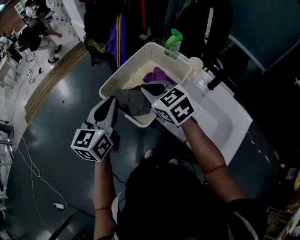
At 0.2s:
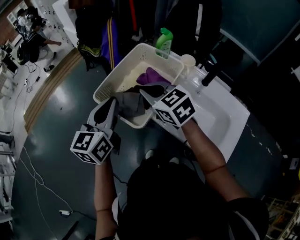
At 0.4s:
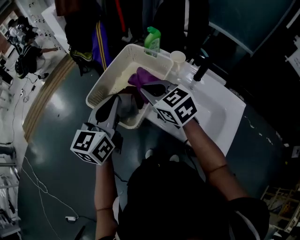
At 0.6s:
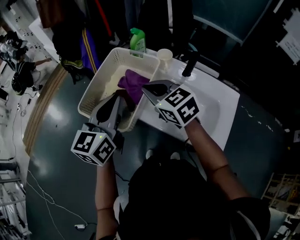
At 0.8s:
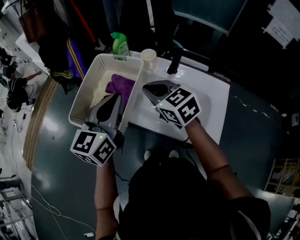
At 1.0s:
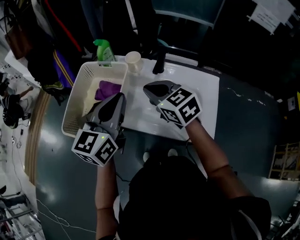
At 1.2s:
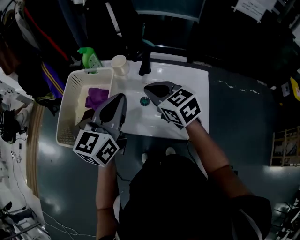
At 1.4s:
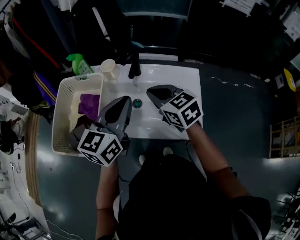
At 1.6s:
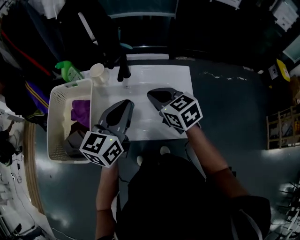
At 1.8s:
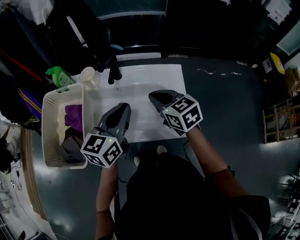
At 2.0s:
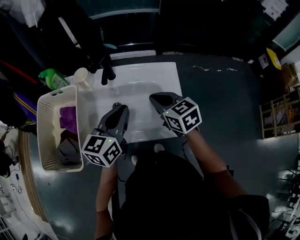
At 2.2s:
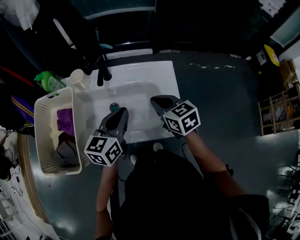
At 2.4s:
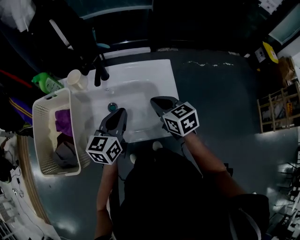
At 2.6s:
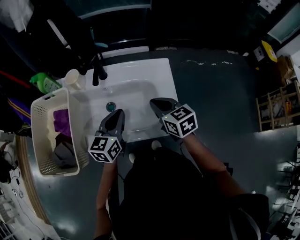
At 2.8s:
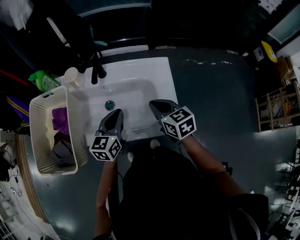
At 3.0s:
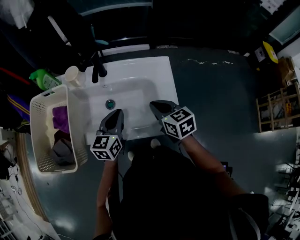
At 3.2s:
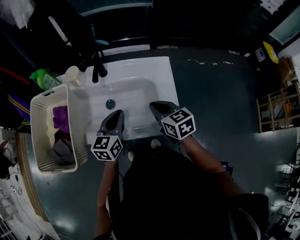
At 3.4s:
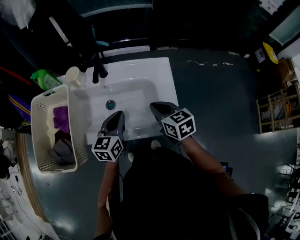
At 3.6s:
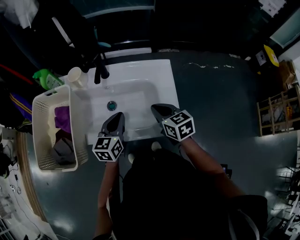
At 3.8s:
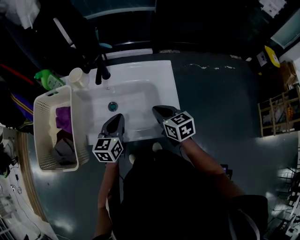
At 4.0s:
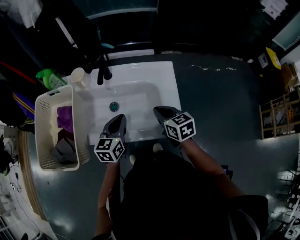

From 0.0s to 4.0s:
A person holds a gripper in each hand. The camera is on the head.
From 0.0s to 1.4s: The left gripper changes place by some 35 cm, and turns by some 50 degrees; the right gripper changes place by roughly 35 cm, and turns by about 40 degrees.
From 1.4s to 2.6s: The left gripper goes approximately 15 cm downward and to the right. Meanwhile the right gripper is displaced to the right and downward by approximately 15 cm, and rotates some 20 degrees.
From 2.6s to 4.0s: The grippers move only a little.

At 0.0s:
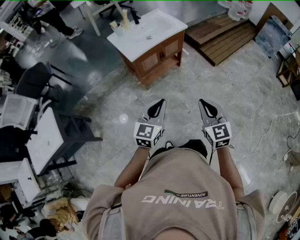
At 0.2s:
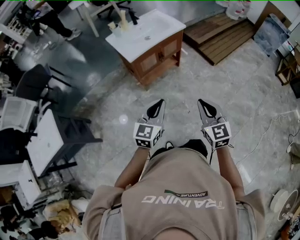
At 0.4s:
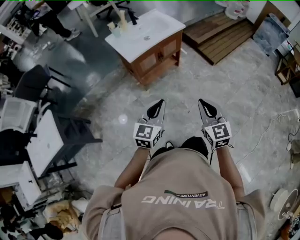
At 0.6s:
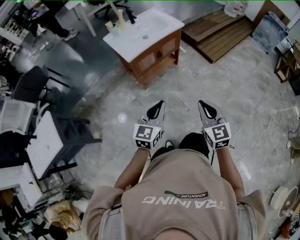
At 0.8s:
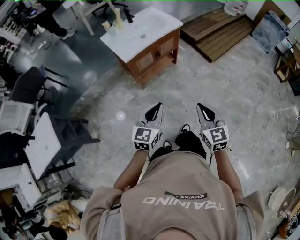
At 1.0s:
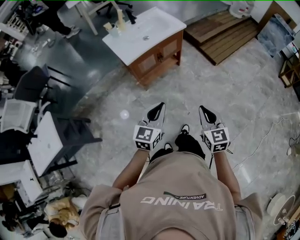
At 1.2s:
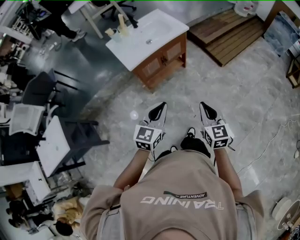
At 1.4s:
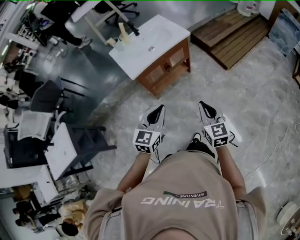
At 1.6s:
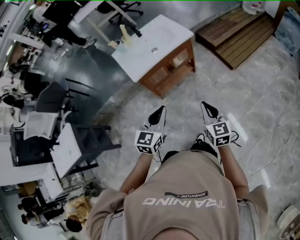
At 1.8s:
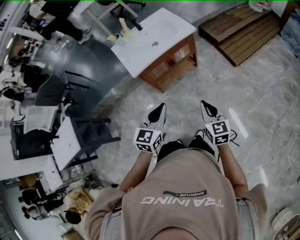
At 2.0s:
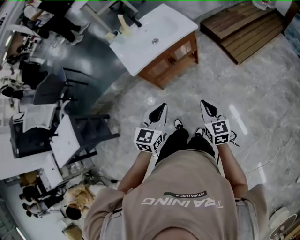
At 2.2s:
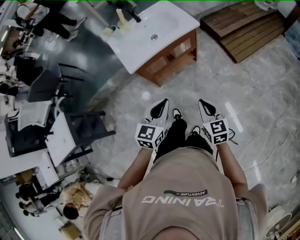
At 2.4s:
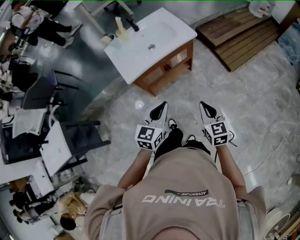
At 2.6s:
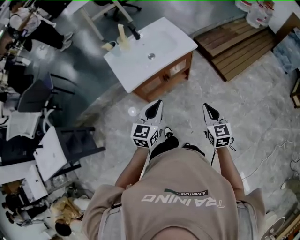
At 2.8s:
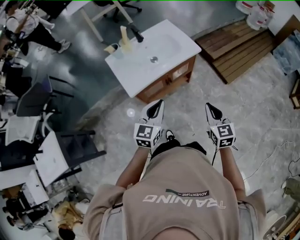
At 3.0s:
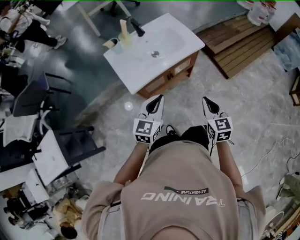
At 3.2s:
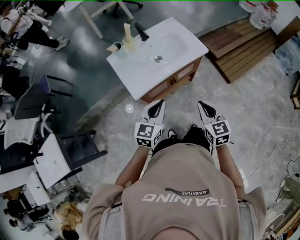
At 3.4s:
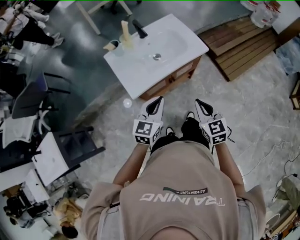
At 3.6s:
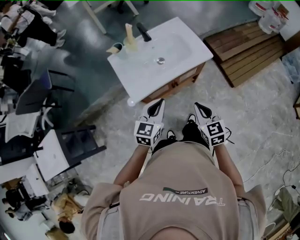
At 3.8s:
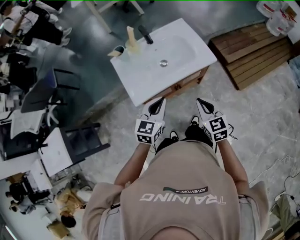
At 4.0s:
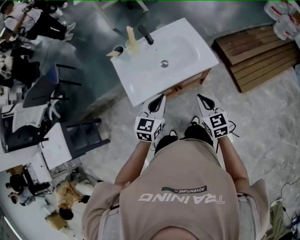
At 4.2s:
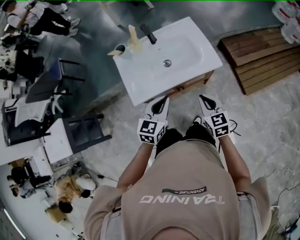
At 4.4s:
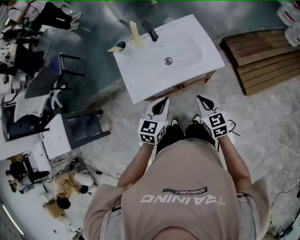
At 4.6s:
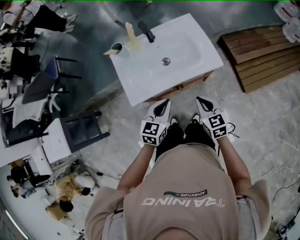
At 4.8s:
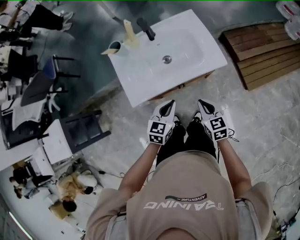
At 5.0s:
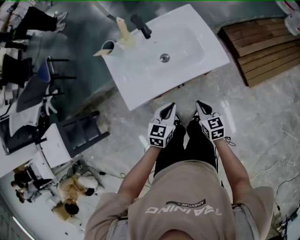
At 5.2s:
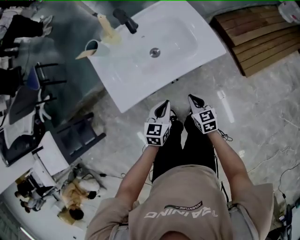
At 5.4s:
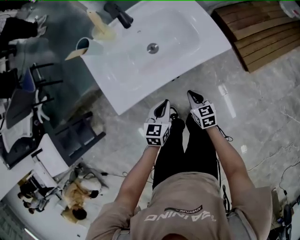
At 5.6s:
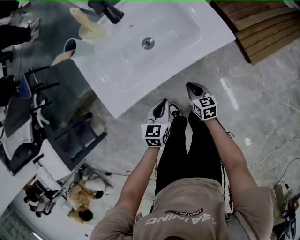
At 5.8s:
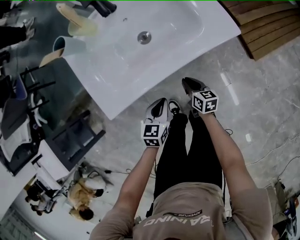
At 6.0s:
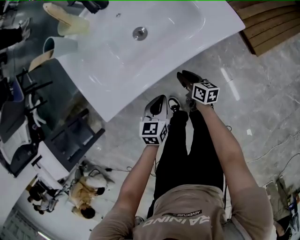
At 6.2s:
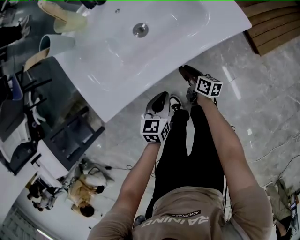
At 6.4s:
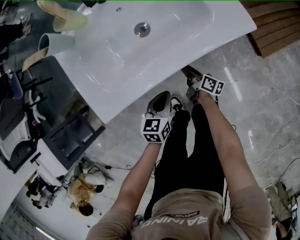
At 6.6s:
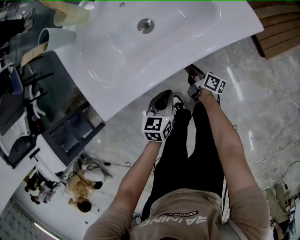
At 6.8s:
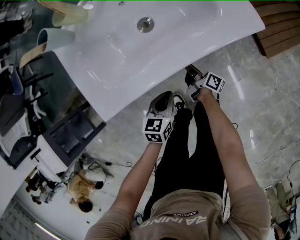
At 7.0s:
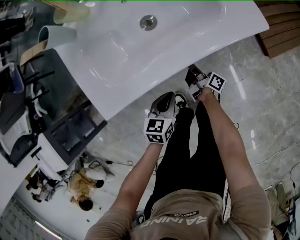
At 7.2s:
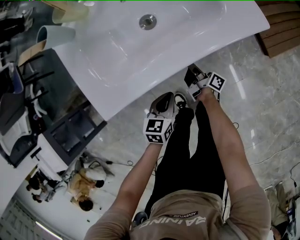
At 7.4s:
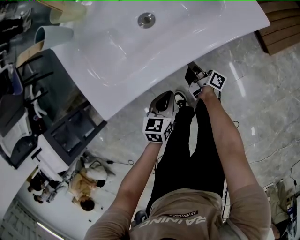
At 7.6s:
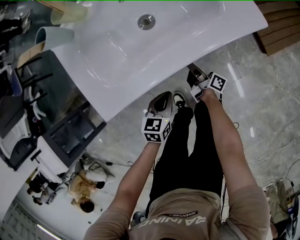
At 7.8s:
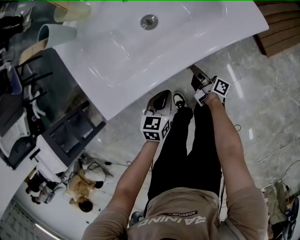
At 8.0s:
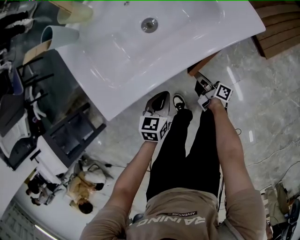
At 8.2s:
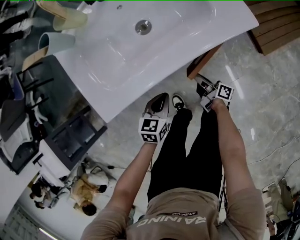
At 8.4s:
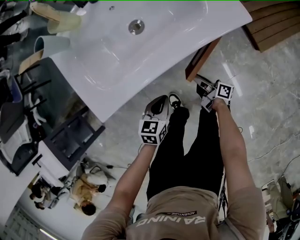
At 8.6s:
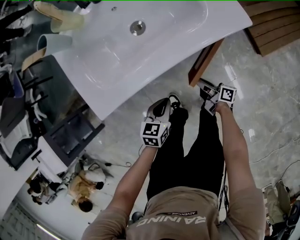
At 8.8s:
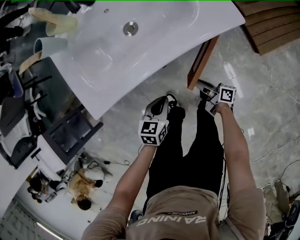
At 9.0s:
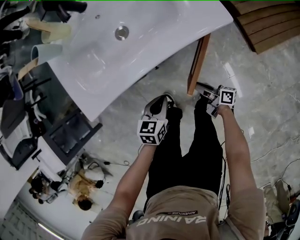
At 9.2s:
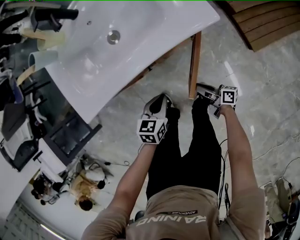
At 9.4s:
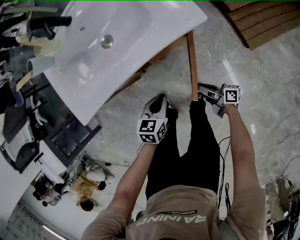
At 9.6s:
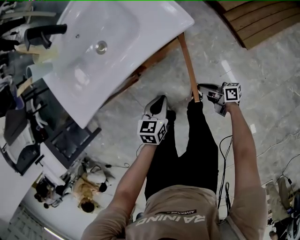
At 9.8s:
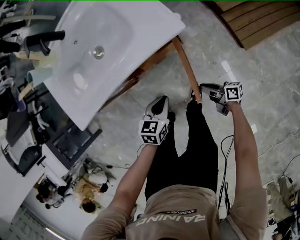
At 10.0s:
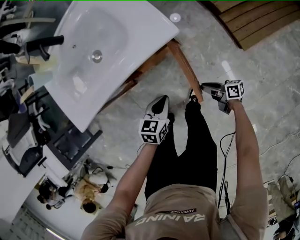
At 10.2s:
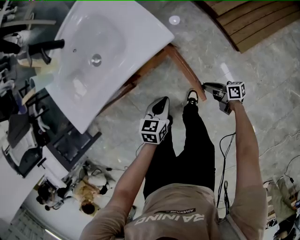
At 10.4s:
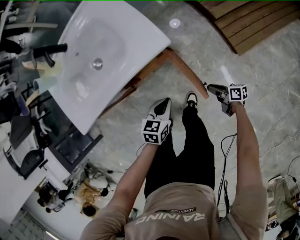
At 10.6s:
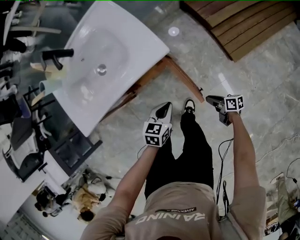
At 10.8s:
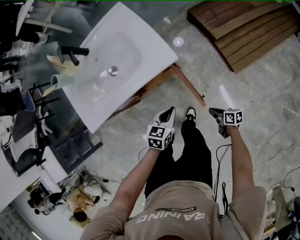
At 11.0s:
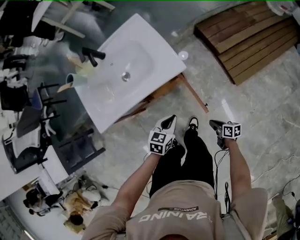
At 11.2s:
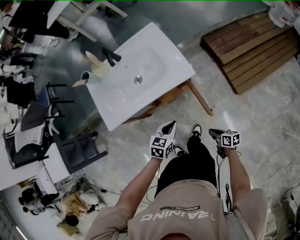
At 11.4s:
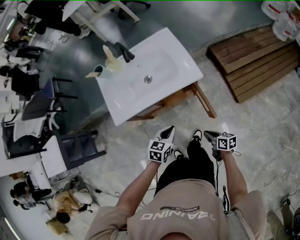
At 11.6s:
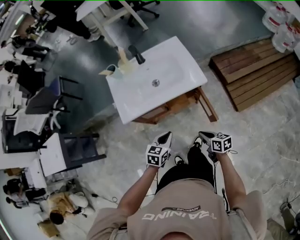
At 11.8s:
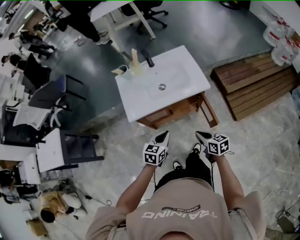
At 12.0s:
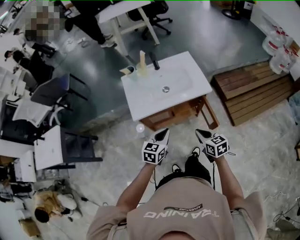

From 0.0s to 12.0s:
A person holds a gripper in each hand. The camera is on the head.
From 0.0s to 1.6s: Both grippers move forward, some 15 cm.
From 1.6s to 3.0s: The two grippers go about 20 cm forward.
From 3.0s to 4.4s: The grippers both shift forward by some 15 cm. The right gripper swivels approximately 30 degrees.
From 4.4s to 6.0s: The grippers both shift downward by some 30 cm. The right gripper twists about 50 degrees clockwise, seen from behind, and opens its fingers.
From 6.0s to 7.6s: The right gripper changes its angle by roughly 40 degrees.
From 7.6s to 9.0s: The right gripper heads backward and to the right, covering approximately 15 cm, and swivels roughly 20 degrees; the left gripper goes approximately 10 cm to the right.
From 9.0s to 10.4s: Both grippers move to the right, roughly 20 cm.
From 10.4s to 12.0s: Both grippers move upward and to the left, roughly 40 cm. The right gripper rotates around the line of its fingers by roughly 50 degrees, counterclockwise from behind, and closes, while the left gripper rotates about 20 degrees.

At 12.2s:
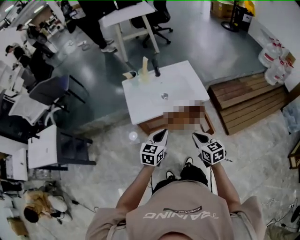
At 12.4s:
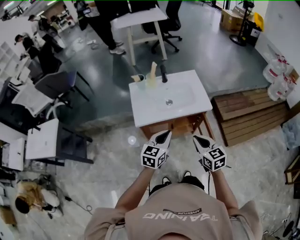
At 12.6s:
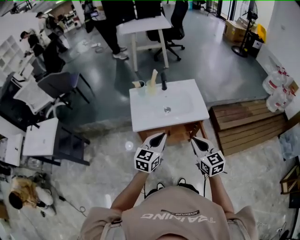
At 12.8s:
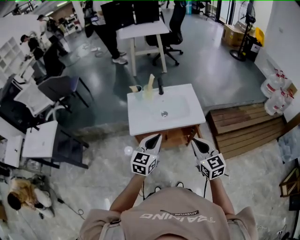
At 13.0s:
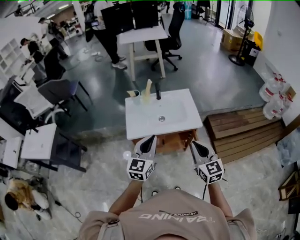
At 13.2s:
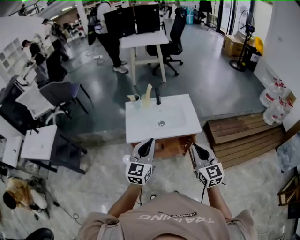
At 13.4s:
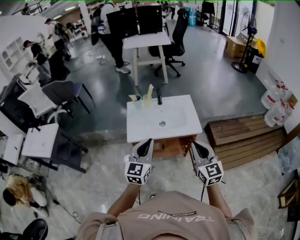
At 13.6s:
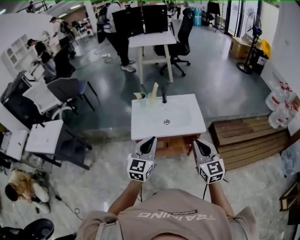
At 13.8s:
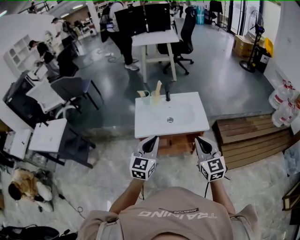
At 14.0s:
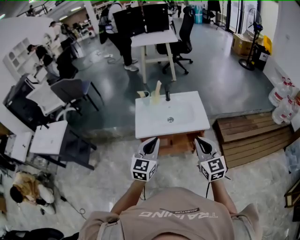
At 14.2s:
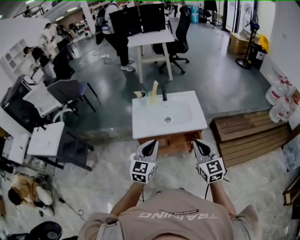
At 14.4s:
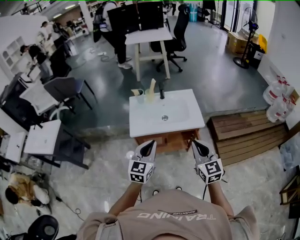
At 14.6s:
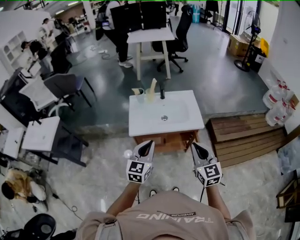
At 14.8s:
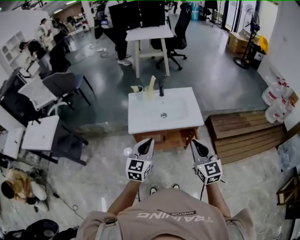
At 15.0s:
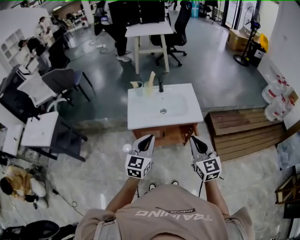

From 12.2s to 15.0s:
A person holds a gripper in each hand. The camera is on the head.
From 12.2s to 13.6s: Both grippers travel together upward, some 15 cm. The right gripper changes its angle by approximately 30 degrees; the left gripper changes its angle by roughly 30 degrees.
From 13.6s to 15.0s: The grippers move only a little.

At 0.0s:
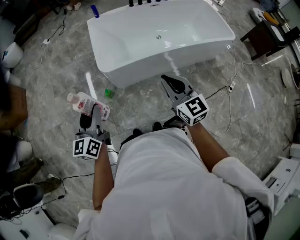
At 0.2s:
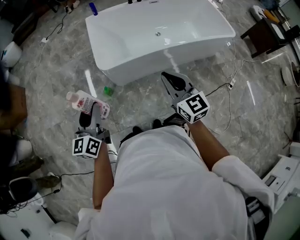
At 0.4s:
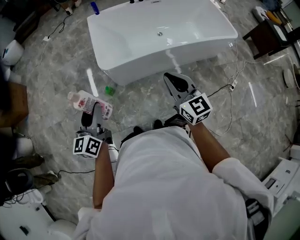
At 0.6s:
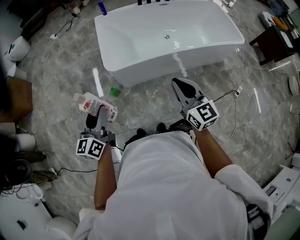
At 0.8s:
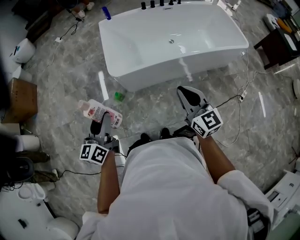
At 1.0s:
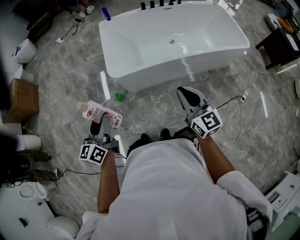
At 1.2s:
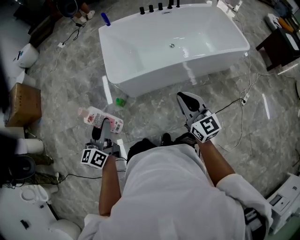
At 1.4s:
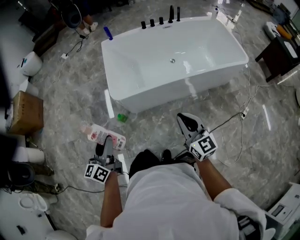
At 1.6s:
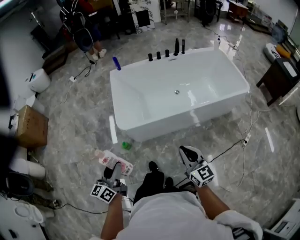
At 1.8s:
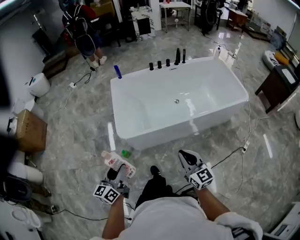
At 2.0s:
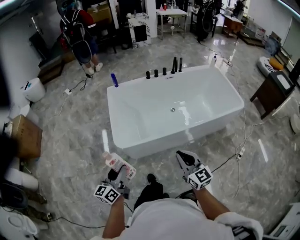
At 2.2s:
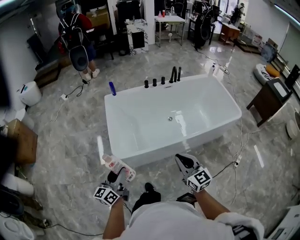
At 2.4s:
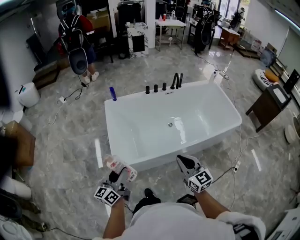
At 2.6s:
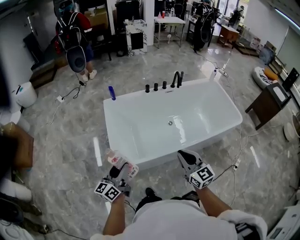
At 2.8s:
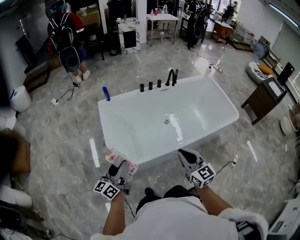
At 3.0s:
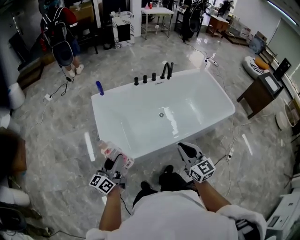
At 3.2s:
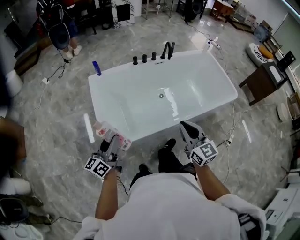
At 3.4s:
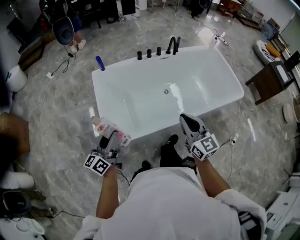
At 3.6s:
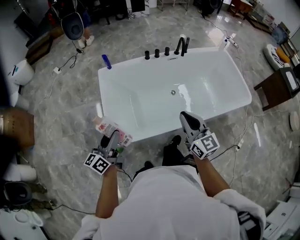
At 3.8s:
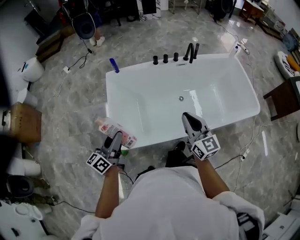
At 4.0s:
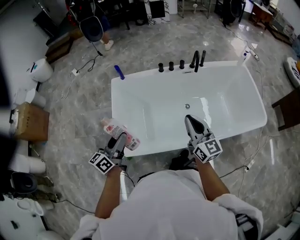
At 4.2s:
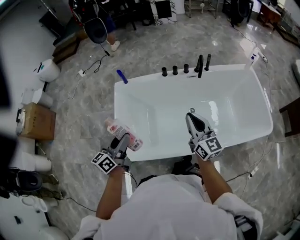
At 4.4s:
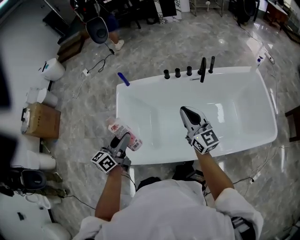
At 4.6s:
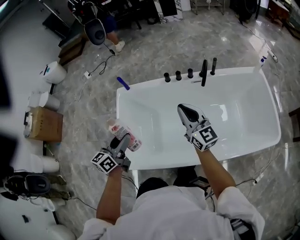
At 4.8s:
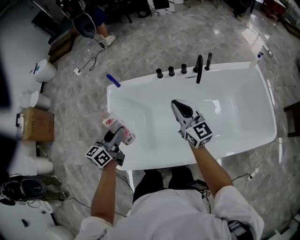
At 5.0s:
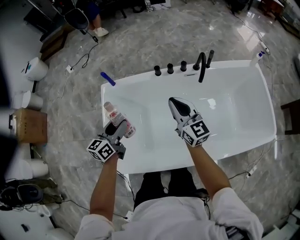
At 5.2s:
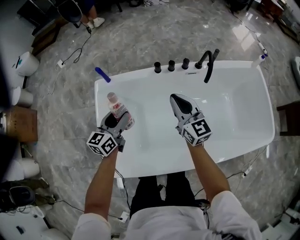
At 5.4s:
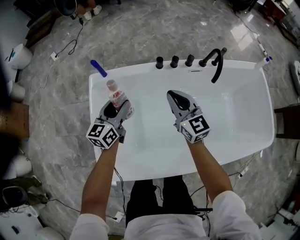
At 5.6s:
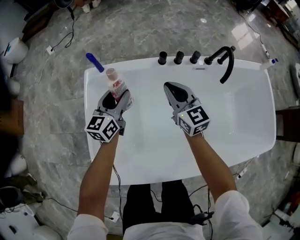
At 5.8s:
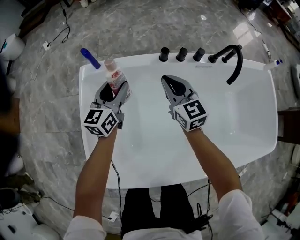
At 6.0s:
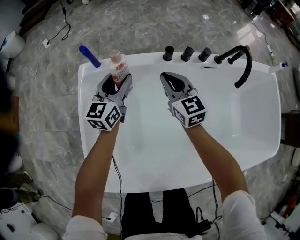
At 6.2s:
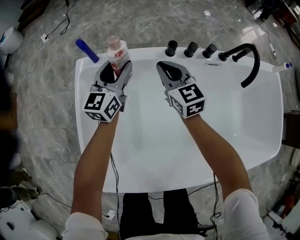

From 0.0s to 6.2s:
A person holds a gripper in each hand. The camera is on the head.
From 0.0s to 1.6s: Both grippers travel together to the right, approximately 10 cm.
From 1.6s to 3.2s: Both grippers travel together forward, about 30 cm.
From 3.2s to 4.6s: The right gripper travels forward by some 40 cm, and turns by about 20 degrees. The left gripper is displaced forward and to the right by approximately 30 cm, and swivels about 20 degrees.
From 4.6s to 6.2s: The left gripper travels forward and downward by roughly 40 cm, and turns by about 20 degrees; the right gripper travels downward, forward and to the left by roughly 40 cm, and turns by some 20 degrees.
